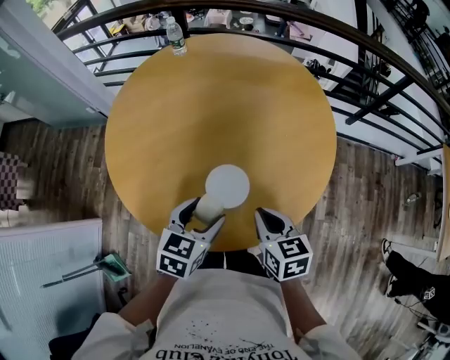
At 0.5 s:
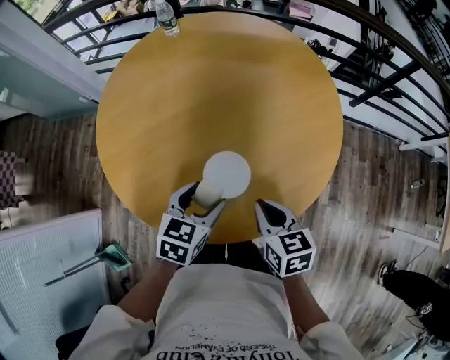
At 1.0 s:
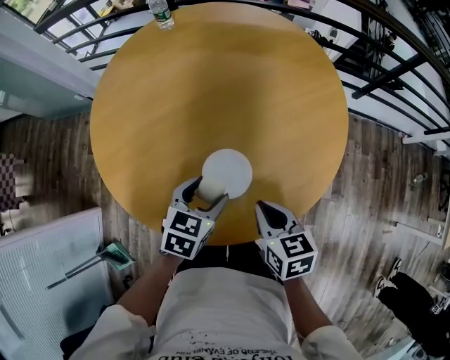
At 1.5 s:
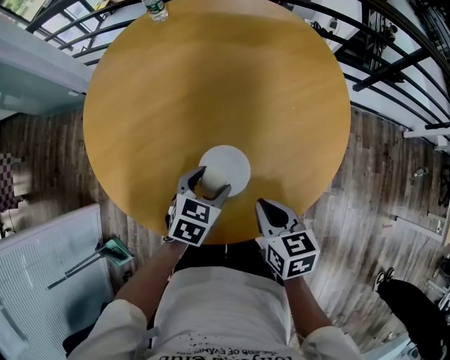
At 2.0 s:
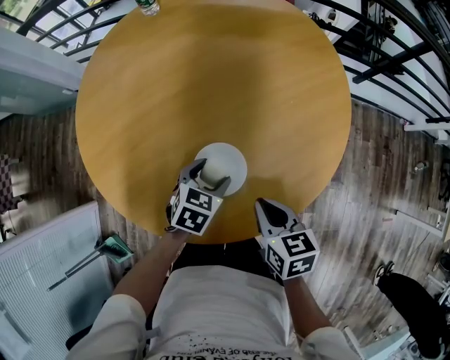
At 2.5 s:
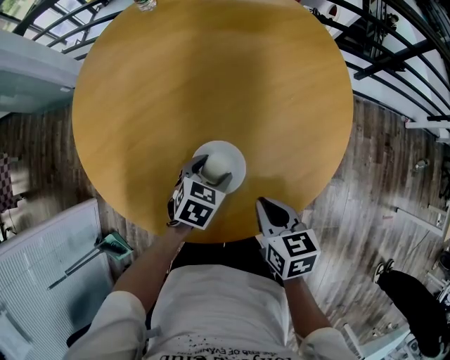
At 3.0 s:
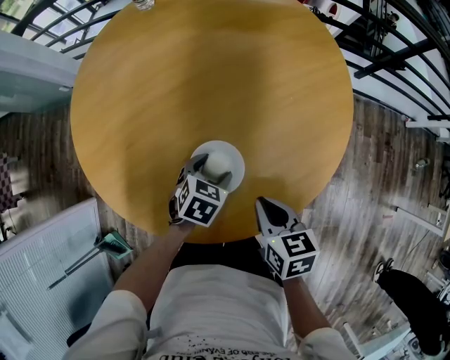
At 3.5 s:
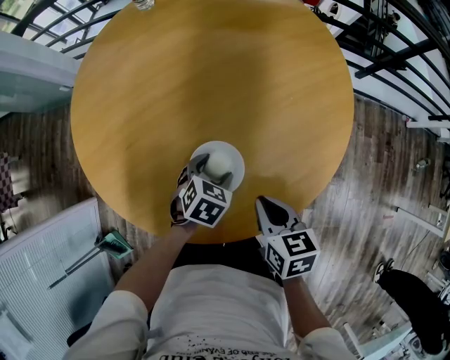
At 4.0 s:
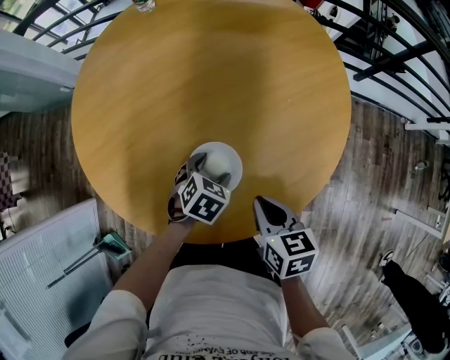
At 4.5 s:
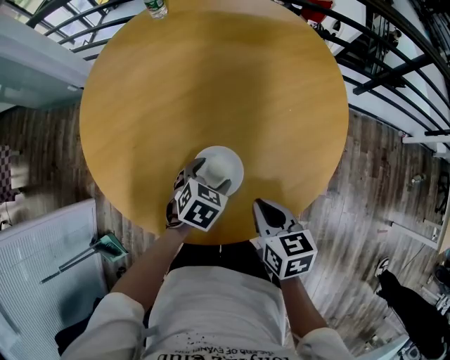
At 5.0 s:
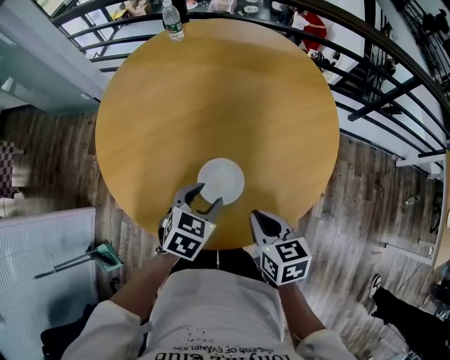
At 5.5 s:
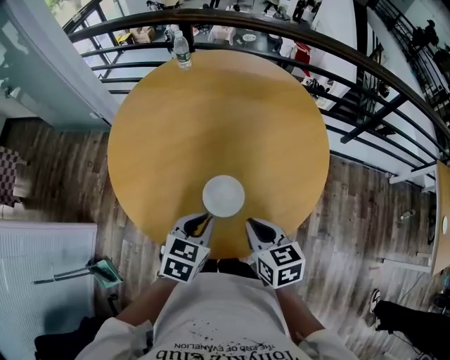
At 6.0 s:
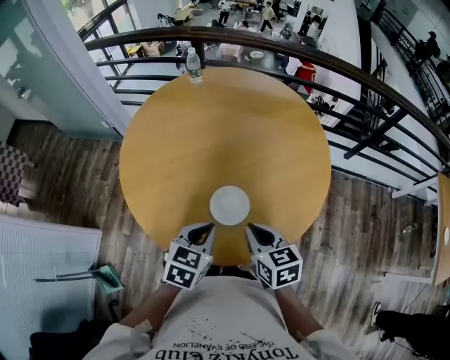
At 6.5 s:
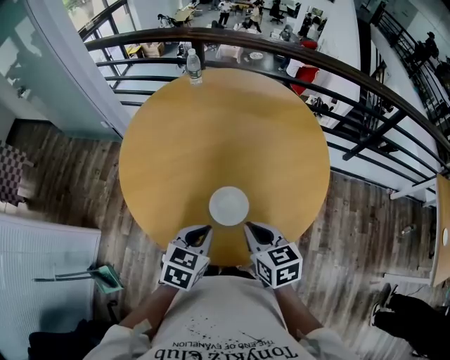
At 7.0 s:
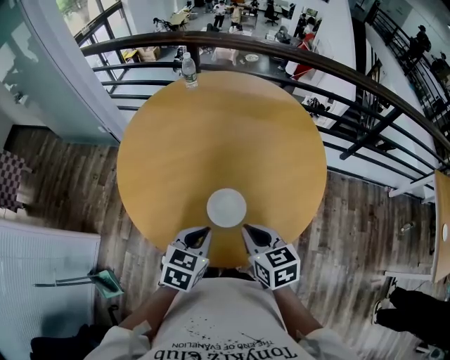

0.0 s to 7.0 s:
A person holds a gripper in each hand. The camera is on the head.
0.0 to 2.0 s: The left gripper travels downward and forward by approximately 15 cm; the right gripper moves downward, approximately 5 cm.
2.0 to 3.5 s: The grippers move only a little.
3.5 to 5.0 s: The left gripper is displaced upward by some 15 cm, while the right gripper goes some 5 cm upward.
5.0 to 7.0 s: The right gripper heads upward and to the left, covering about 10 cm. The left gripper goes about 10 cm upward and backward, and closes up.

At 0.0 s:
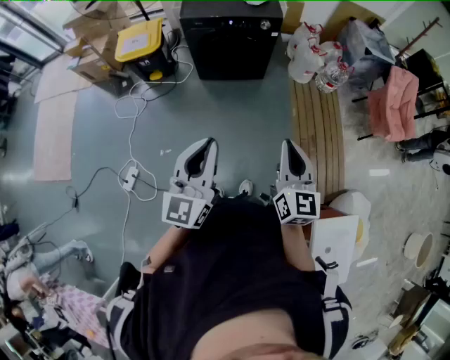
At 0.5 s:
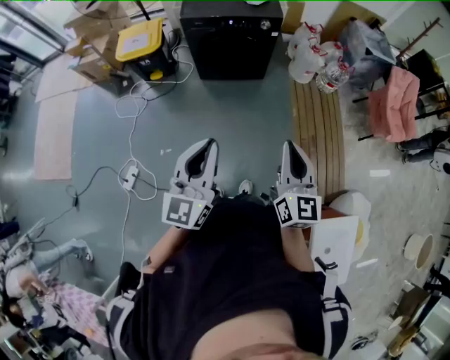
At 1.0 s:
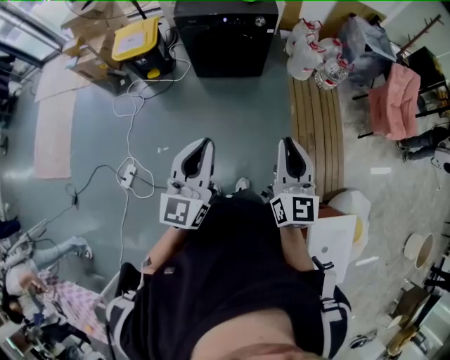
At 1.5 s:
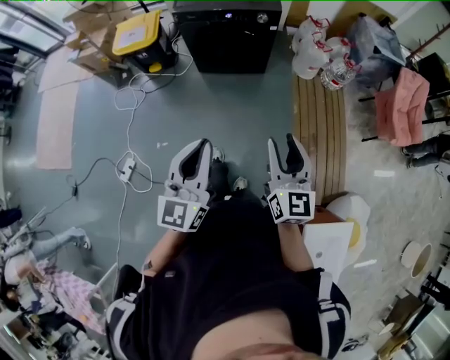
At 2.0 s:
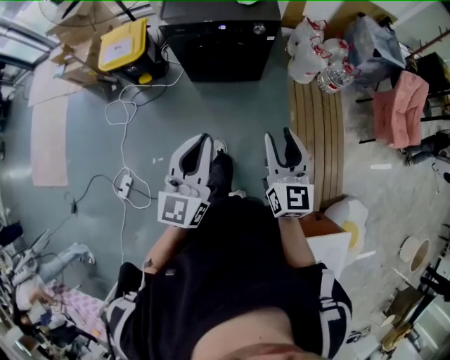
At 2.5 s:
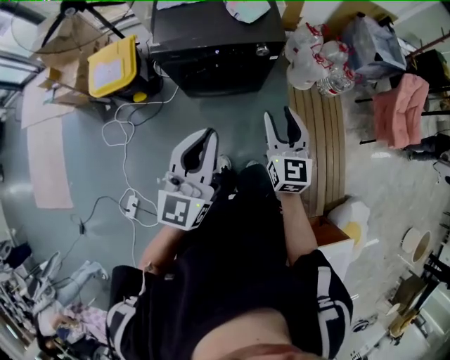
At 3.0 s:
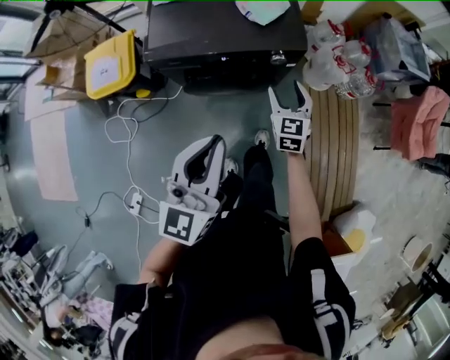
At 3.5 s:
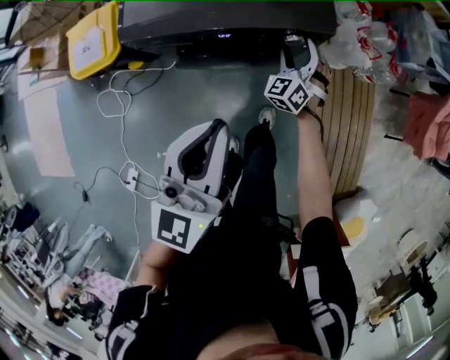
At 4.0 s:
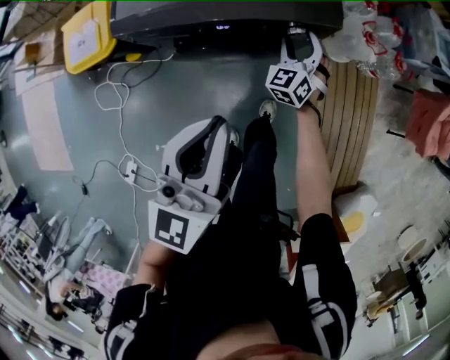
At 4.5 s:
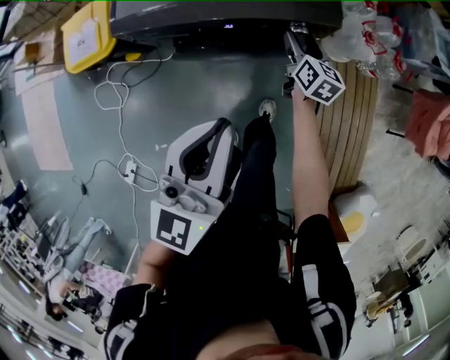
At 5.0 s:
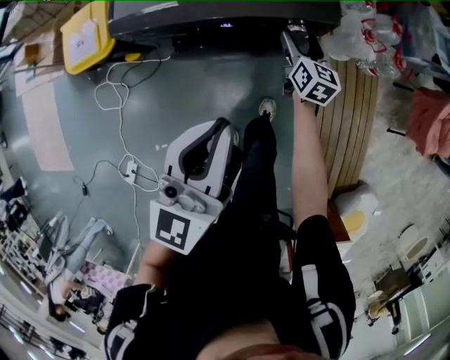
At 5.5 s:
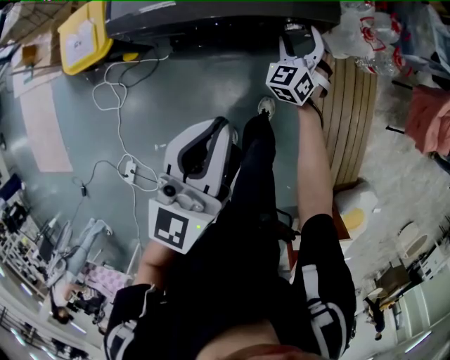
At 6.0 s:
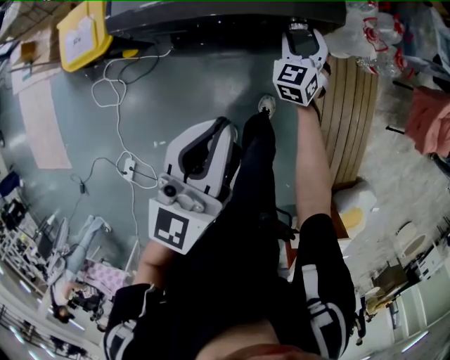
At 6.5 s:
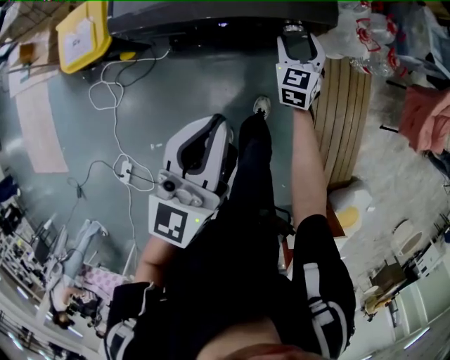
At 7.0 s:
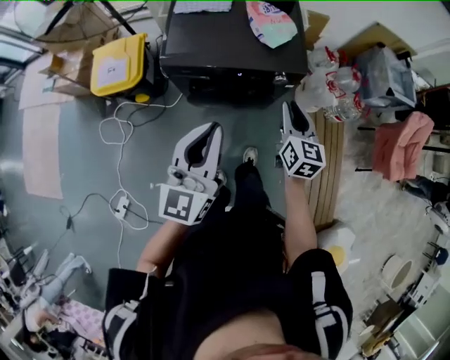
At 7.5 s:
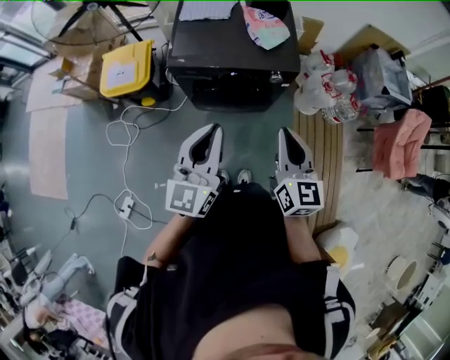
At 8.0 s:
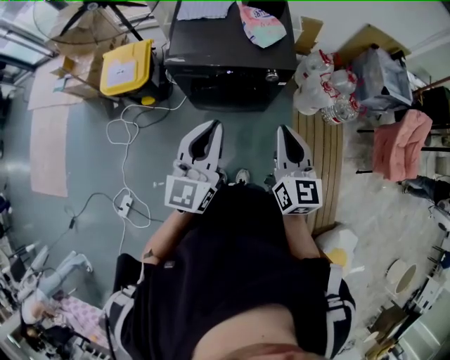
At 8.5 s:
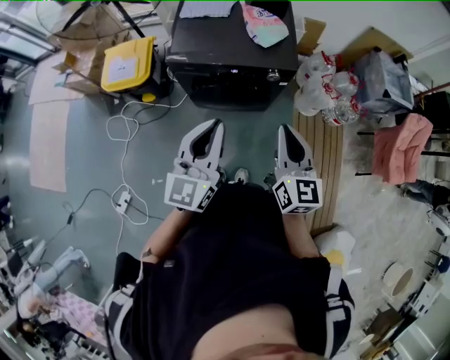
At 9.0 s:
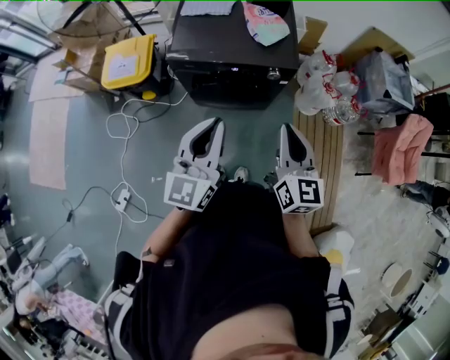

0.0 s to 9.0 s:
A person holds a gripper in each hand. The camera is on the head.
0.0 to 2.0 s: Both grippers move forward, roughly 25 cm. The right gripper opens up.
2.0 to 4.5 s: The pair of grippers is taken forward, roughly 50 cm. The right gripper moves downward, some 40 cm, and rotates some 30 degrees.
4.5 to 7.0 s: The right gripper travels upward and backward by roughly 35 cm, and closes. The left gripper moves upward, backward and to the left, roughly 20 cm.
7.0 to 9.0 s: The left gripper travels backward by about 5 cm. Meanwhile the right gripper travels backward and upward by roughly 20 cm.

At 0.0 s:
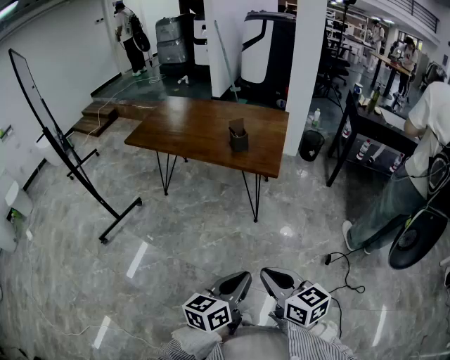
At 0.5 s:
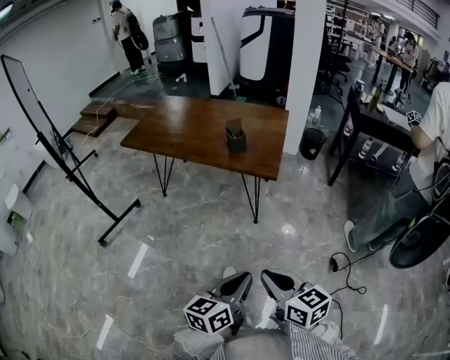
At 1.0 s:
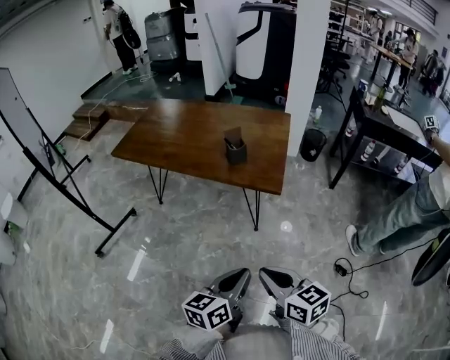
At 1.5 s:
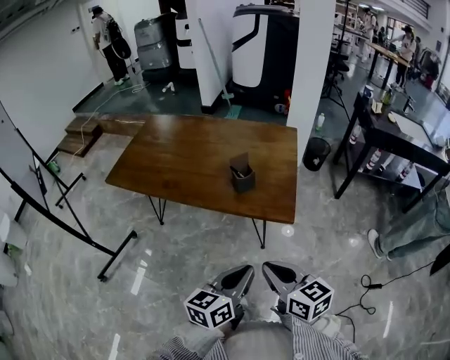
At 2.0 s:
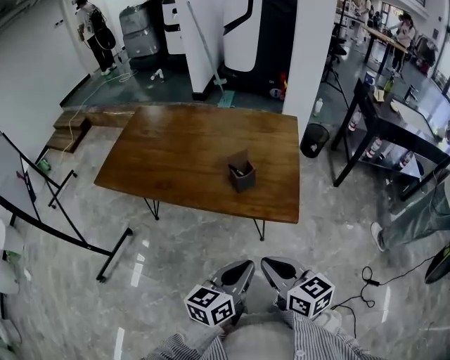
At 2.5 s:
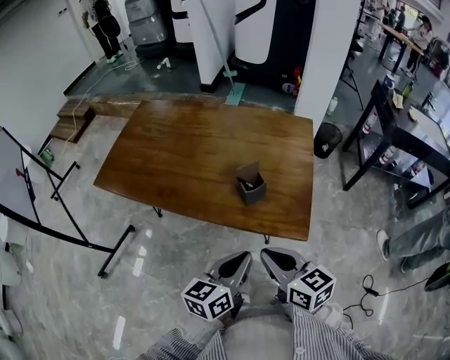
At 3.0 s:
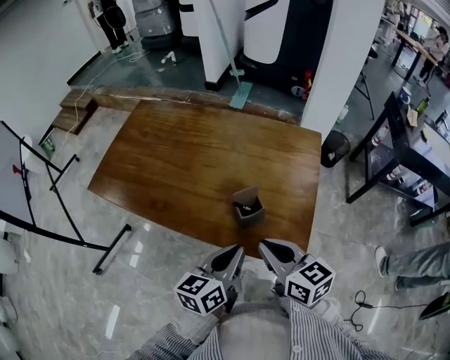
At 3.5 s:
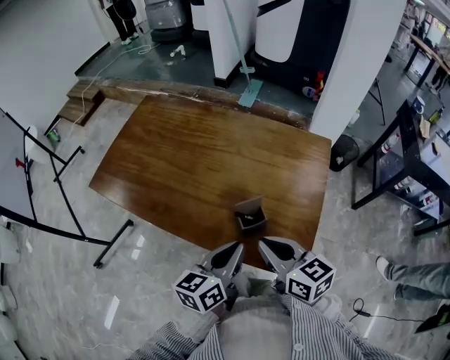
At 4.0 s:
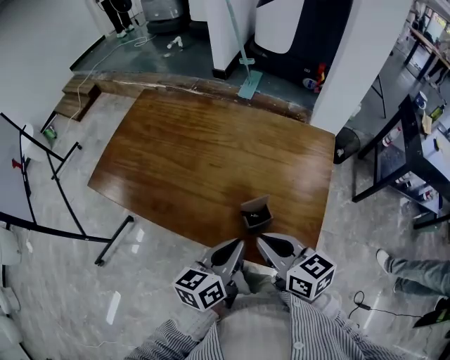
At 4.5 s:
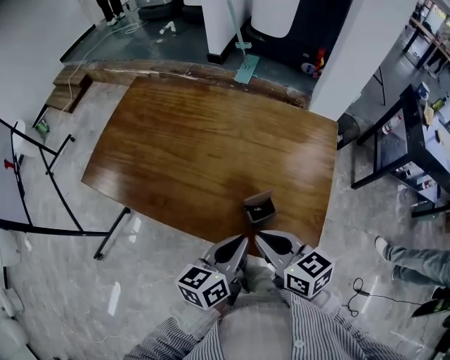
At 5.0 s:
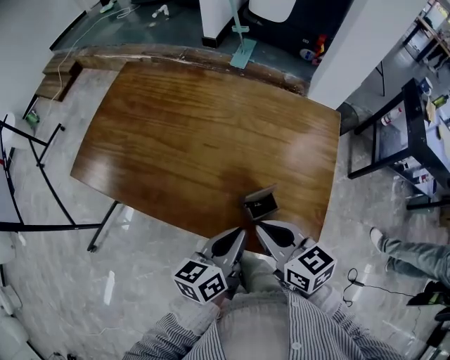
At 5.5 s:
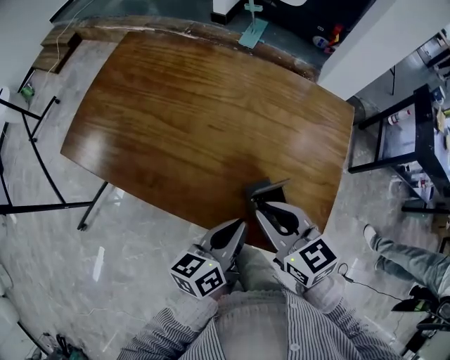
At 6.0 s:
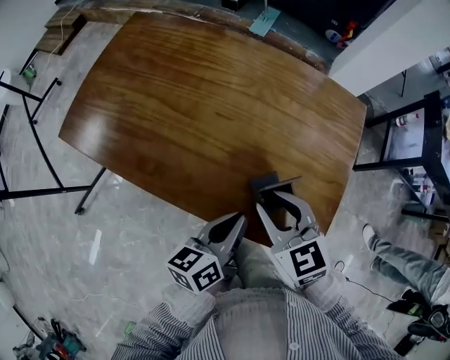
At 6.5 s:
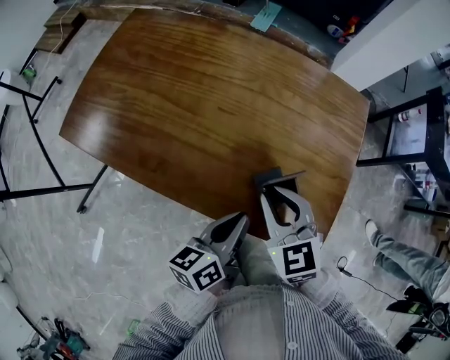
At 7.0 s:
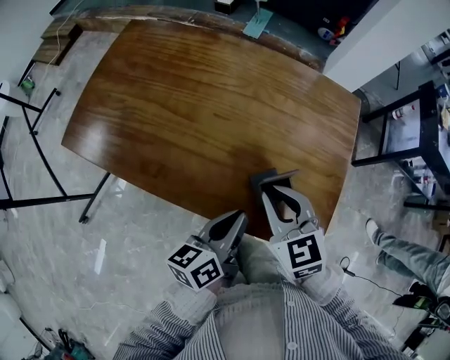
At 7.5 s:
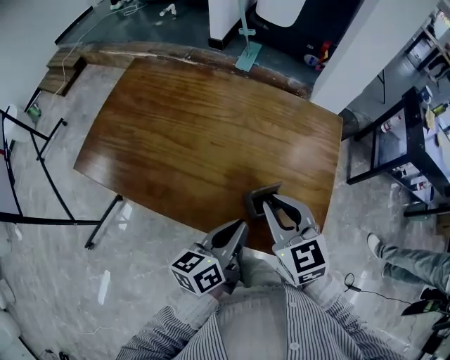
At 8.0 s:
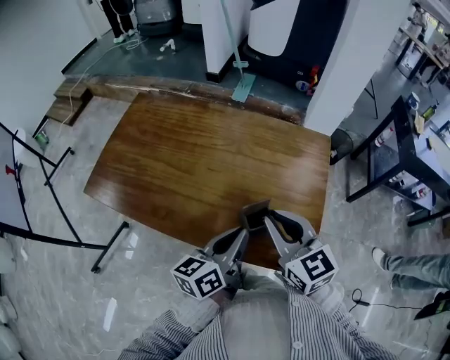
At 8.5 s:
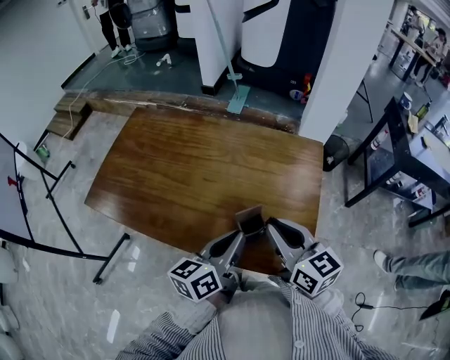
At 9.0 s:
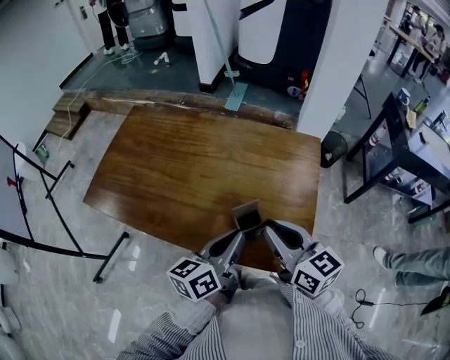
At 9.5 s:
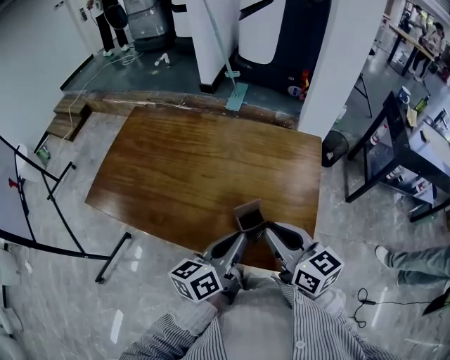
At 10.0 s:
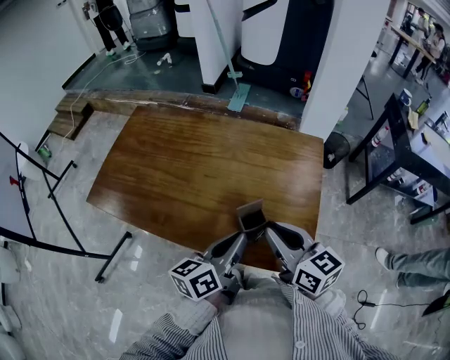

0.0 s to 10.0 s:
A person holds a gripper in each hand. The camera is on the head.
0.0 to 2.0 s: Both grippers move forward, about 35 cm.
2.0 to 4.0 s: The grippers both shift forward by approximately 25 cm.
4.0 to 6.0 s: The left gripper shifts about 5 cm downward, while the right gripper heads forward and downward, covering roughly 10 cm, changes its angle by roughly 30 degrees, and opens up.
6.0 to 8.0 s: The grippers both shift upward by approximately 10 cm. The right gripper rotates roughly 20 degrees.
8.0 to 10.0 s: There are only small adjustments of the grippers.

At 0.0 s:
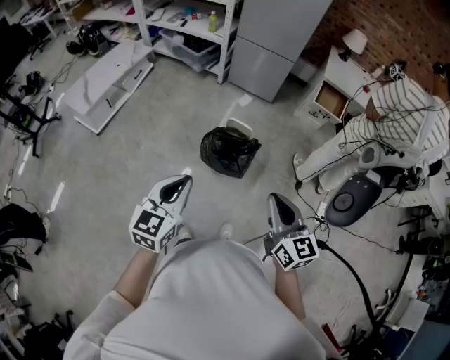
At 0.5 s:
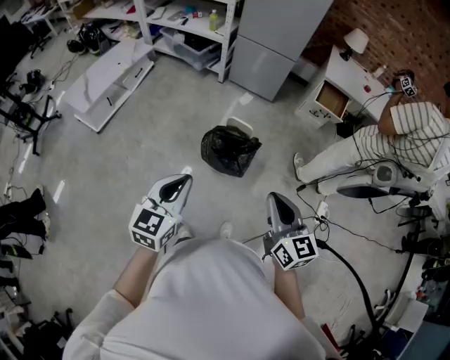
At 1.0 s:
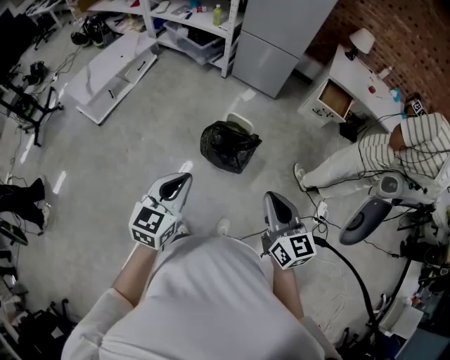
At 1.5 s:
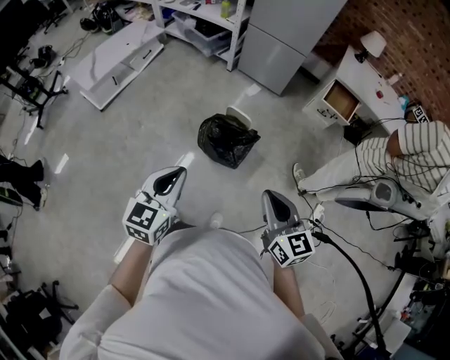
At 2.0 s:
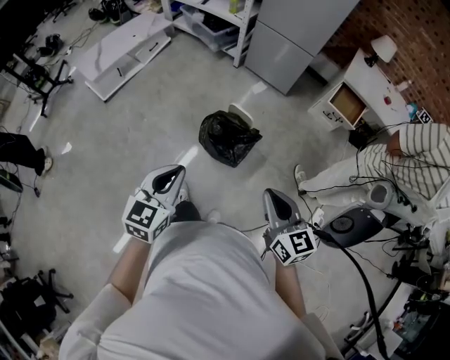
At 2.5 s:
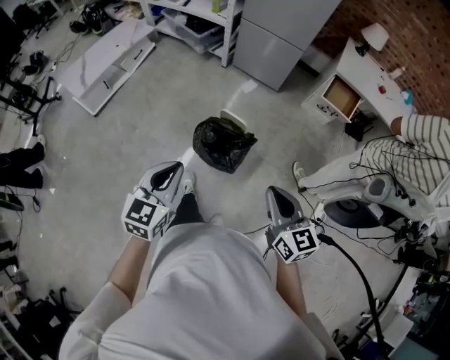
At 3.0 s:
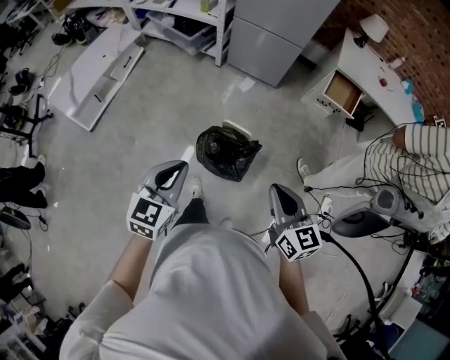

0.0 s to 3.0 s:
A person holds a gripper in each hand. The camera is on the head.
0.0 to 1.5 s: The grippers both shift to the right by some 5 cm.
1.5 to 3.0 s: Both grippers move forward, some 20 cm.
